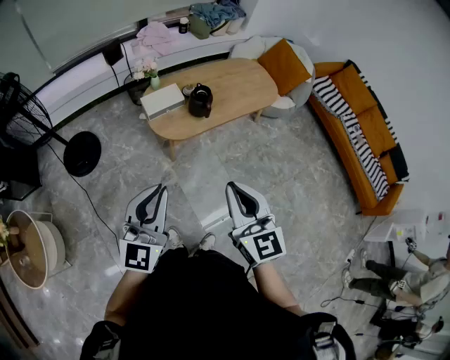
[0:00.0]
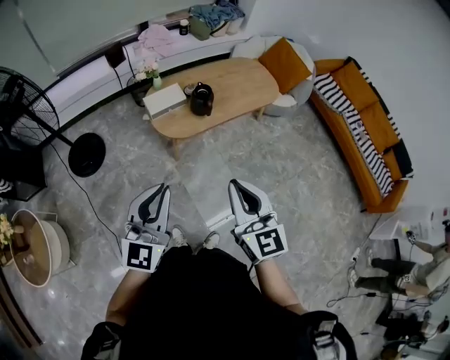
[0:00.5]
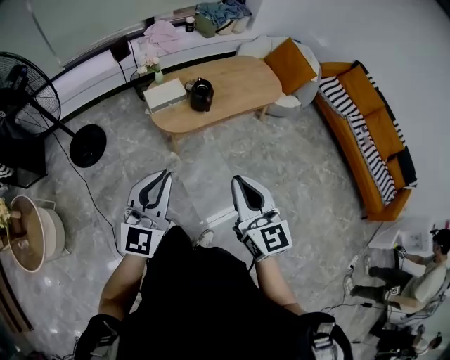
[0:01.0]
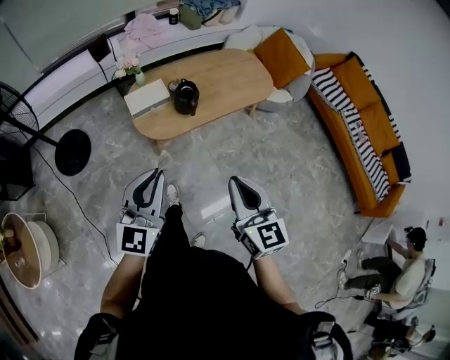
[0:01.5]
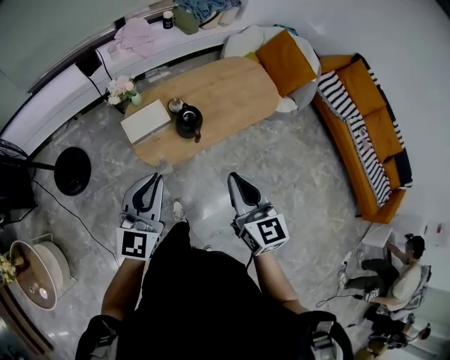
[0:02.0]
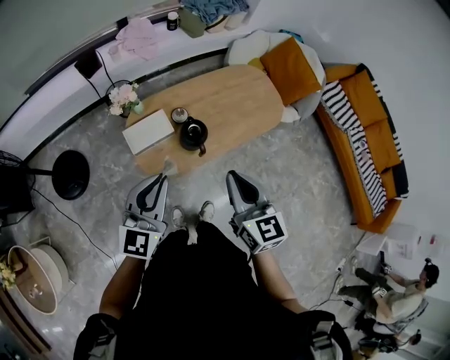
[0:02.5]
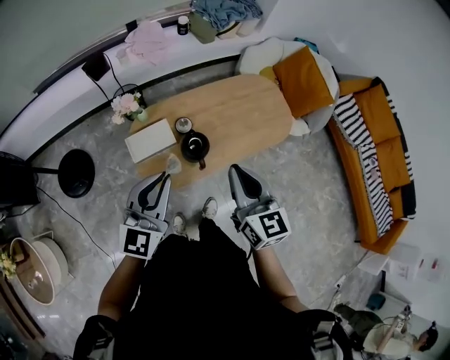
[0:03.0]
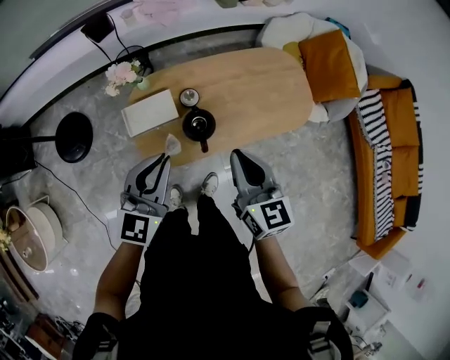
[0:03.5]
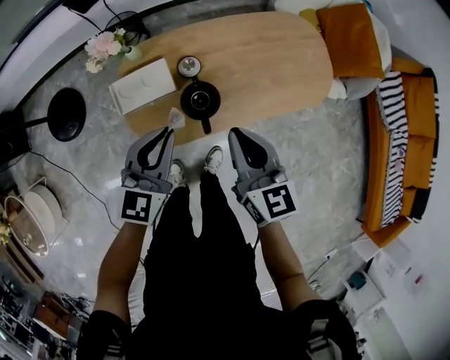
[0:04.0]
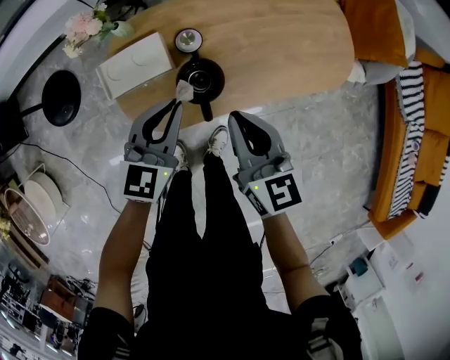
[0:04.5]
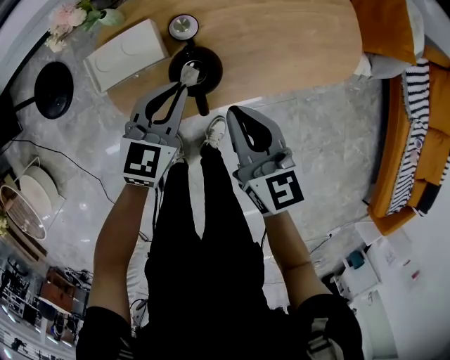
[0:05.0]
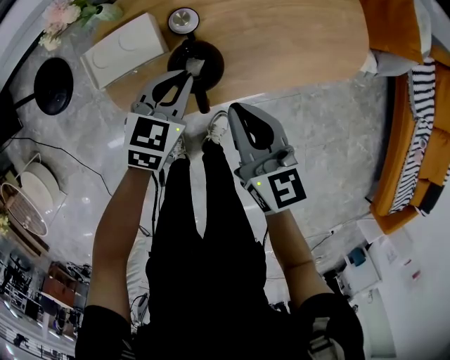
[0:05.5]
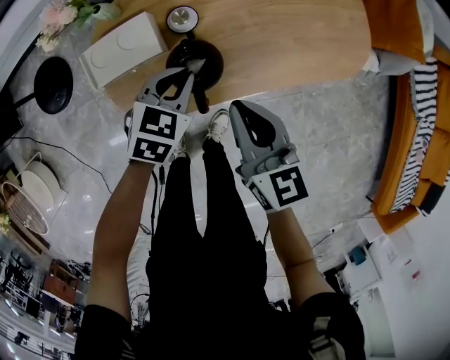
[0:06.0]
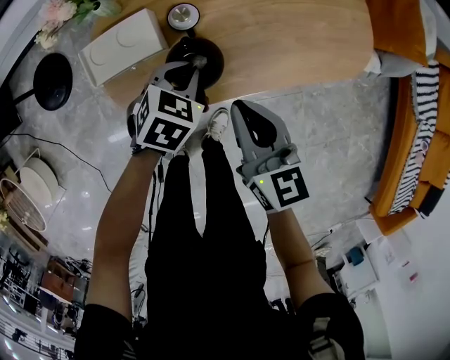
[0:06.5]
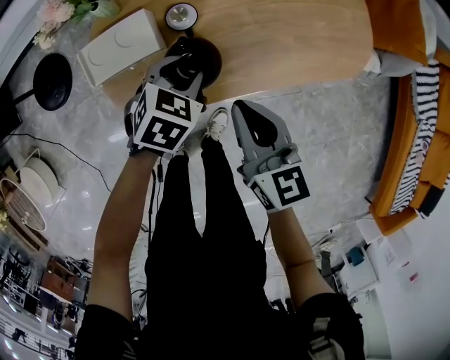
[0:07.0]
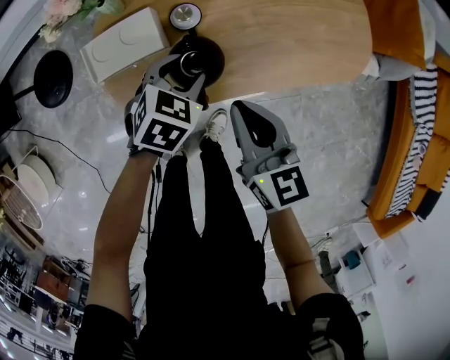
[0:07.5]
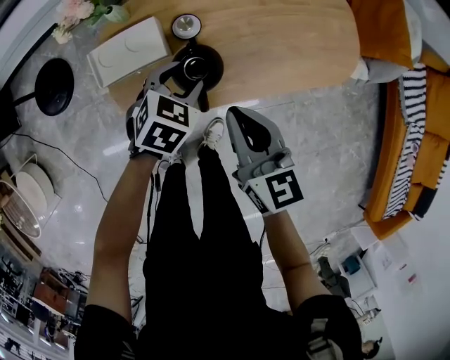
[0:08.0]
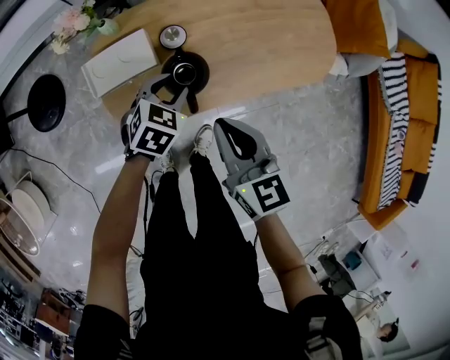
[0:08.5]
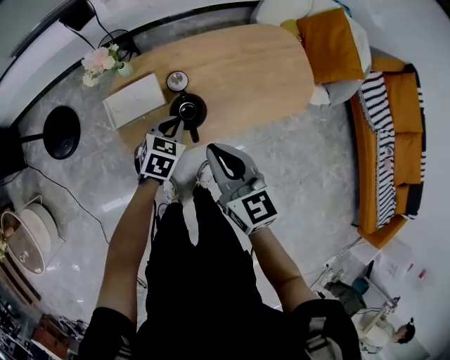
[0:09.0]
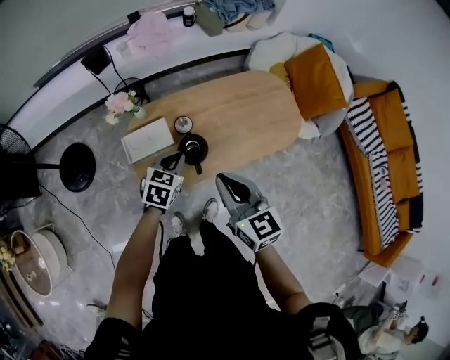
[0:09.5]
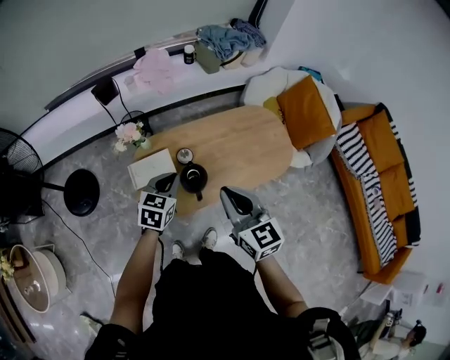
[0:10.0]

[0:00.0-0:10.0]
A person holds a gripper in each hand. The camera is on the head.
0:00.0 to 0:02.0: Both grippers move forward, about 25 cm.
0:02.0 to 0:04.0: Both grippers travel together forward and downward, roughly 30 cm.
0:04.0 to 0:06.0: The right gripper goes some 15 cm downward. The left gripper moves downward, approximately 20 cm, and points its fingers roughly 30 degrees further downward.
0:06.0 to 0:08.0: The left gripper opens up.
0:08.0 to 0:10.0: The grippers both shift upward by about 25 cm. The left gripper changes its angle by some 20 degrees, and closes up.

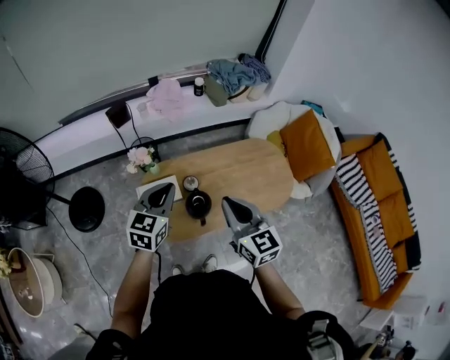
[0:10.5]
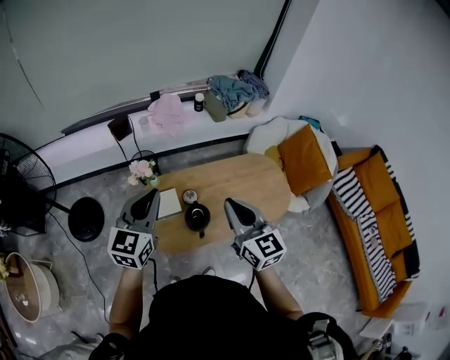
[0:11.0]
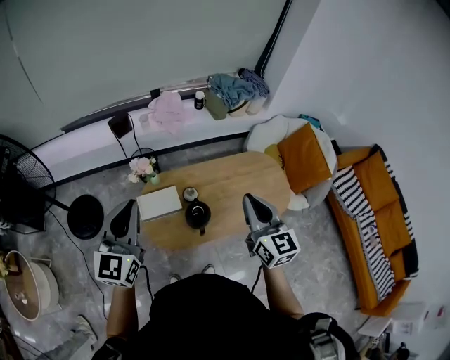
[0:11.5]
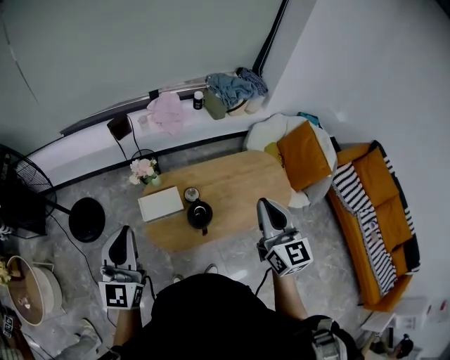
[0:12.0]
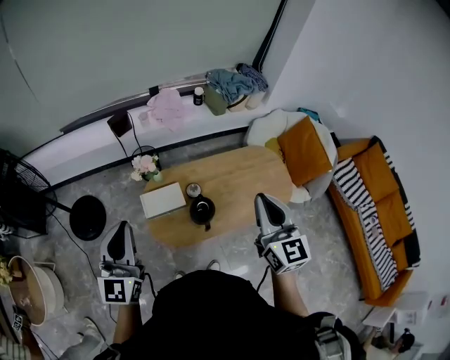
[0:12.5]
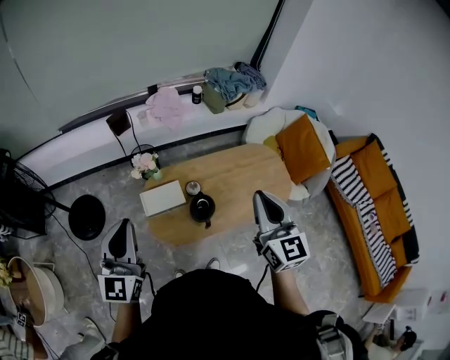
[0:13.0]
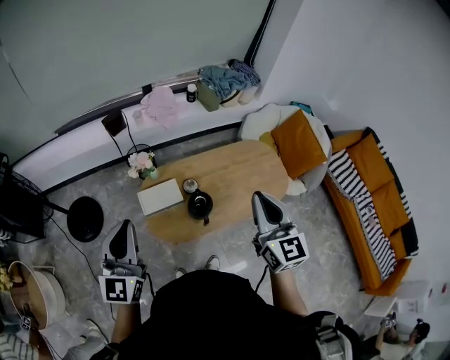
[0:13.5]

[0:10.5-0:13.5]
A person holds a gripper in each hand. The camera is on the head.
0:10.5 to 0:12.0: The right gripper travels upward and to the right by about 10 cm. Meanwhile the left gripper goes approximately 20 cm upward, to the left and backward, and turns by some 30 degrees.
0:12.0 to 0:13.5: There are only small adjustments of the grippers.

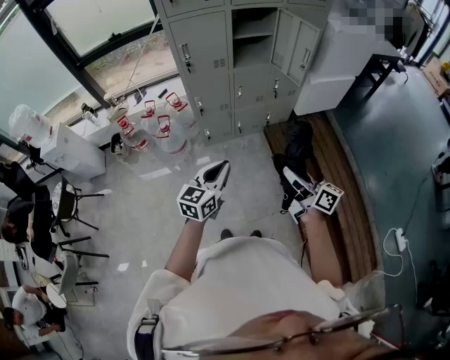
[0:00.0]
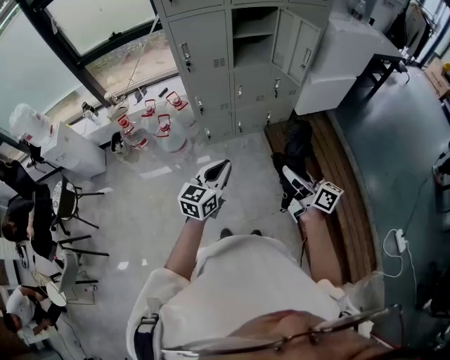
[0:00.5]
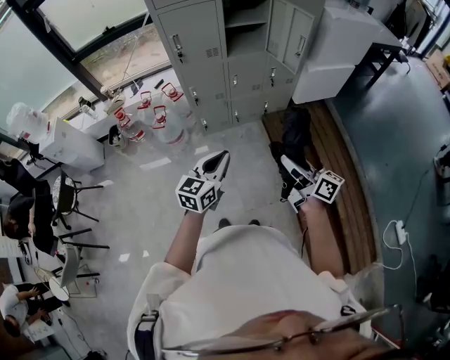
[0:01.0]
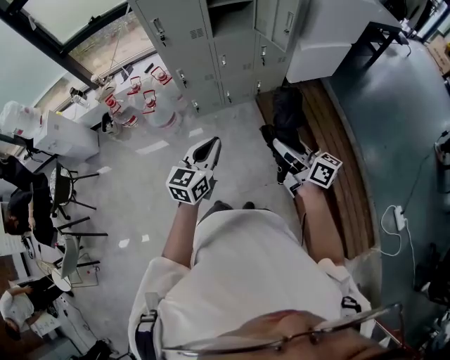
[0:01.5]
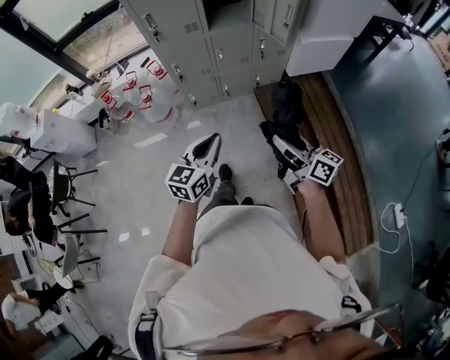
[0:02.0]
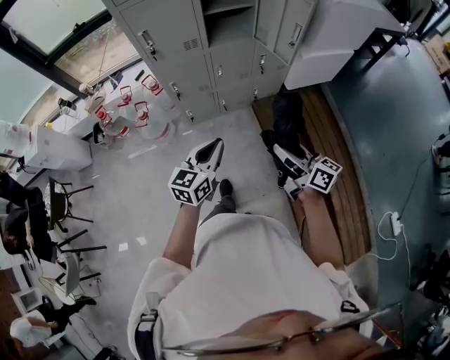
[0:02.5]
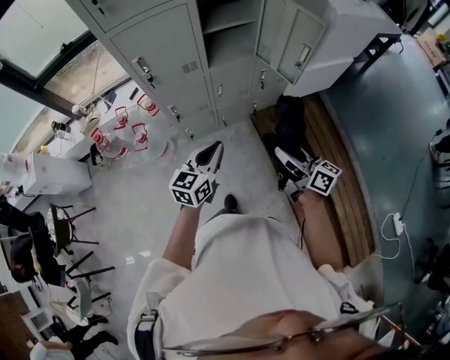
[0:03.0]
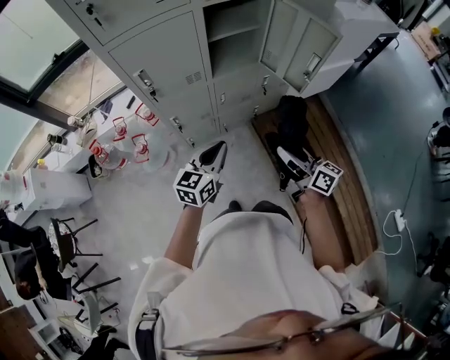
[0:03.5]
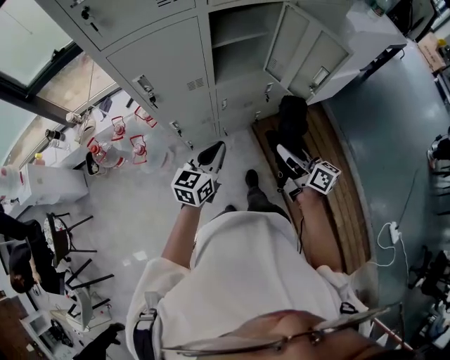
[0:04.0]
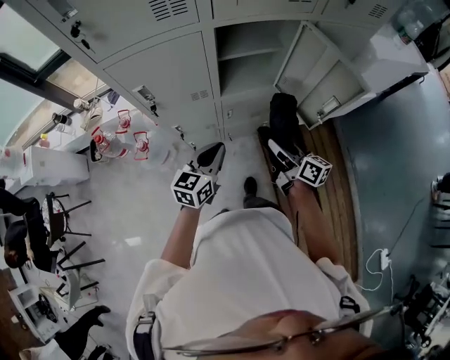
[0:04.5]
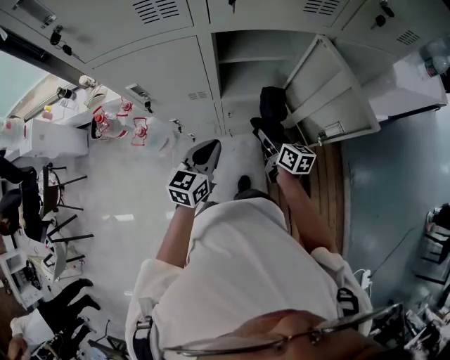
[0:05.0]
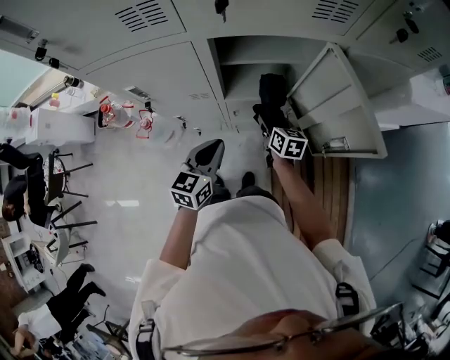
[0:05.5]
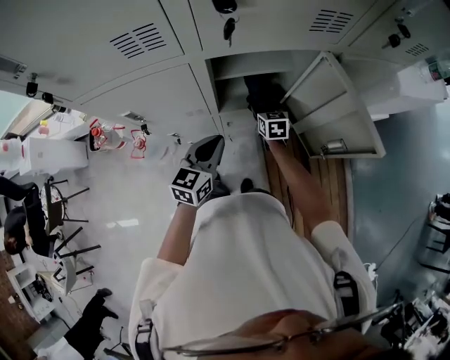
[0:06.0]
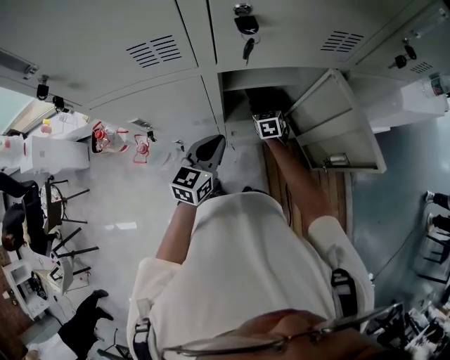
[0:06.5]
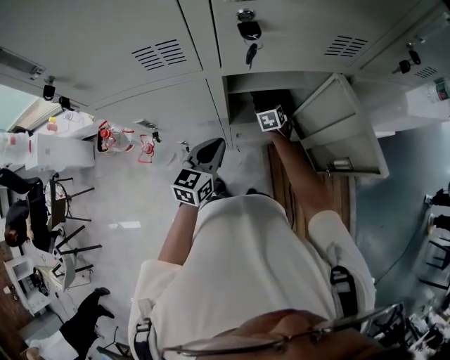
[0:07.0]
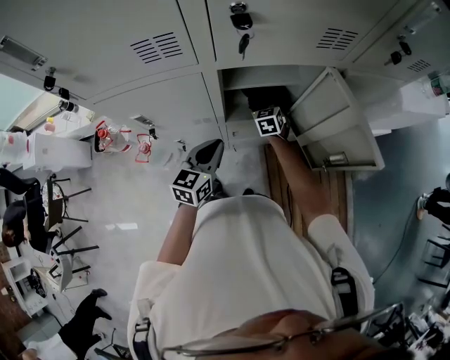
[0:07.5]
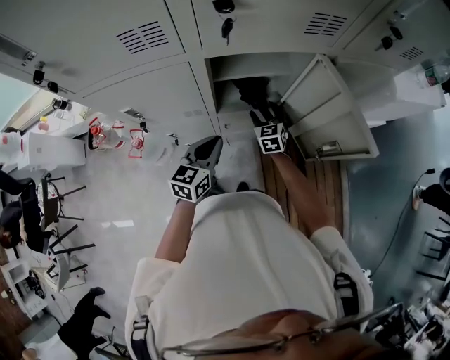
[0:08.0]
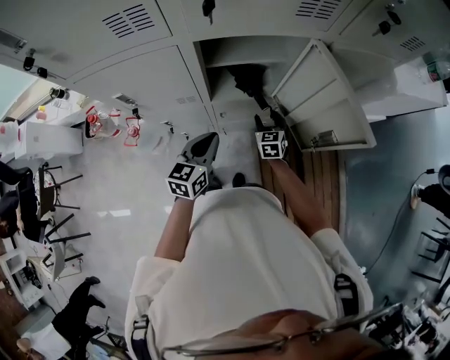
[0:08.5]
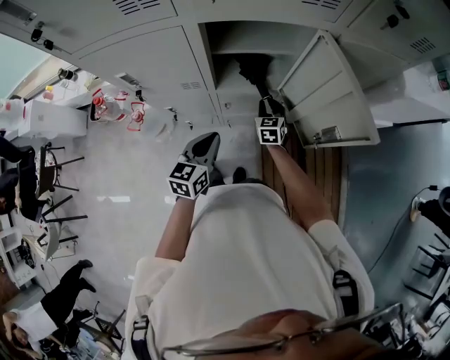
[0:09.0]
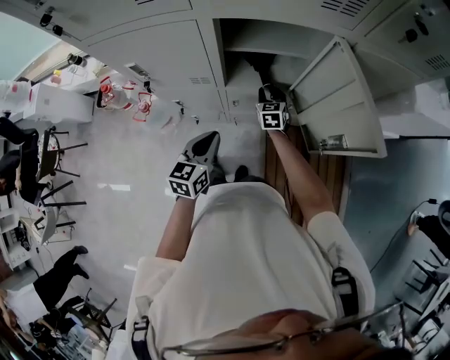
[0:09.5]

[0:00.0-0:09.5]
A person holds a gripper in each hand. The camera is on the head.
0:00.0 to 0:02.0: Both grippers move to the right, about 10 cm.
0:02.0 to 0:04.0: The grippers both shift forward by some 35 cm.
0:04.0 to 0:05.5: The right gripper is displaced forward and downward by approximately 35 cm, and rotates approximately 30 degrees. Meanwhile the left gripper heads forward and to the right, covering roughly 15 cm, and turns by some 20 degrees.
0:05.5 to 0:07.5: The right gripper shifts about 15 cm forward, and turns by approximately 40 degrees; the left gripper goes roughly 5 cm forward.
0:07.5 to 0:09.5: The two grippers go roughly 10 cm backward. The right gripper closes its fingers.

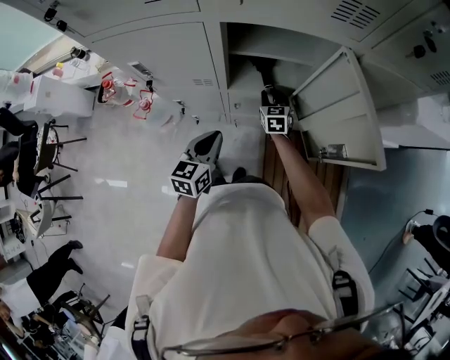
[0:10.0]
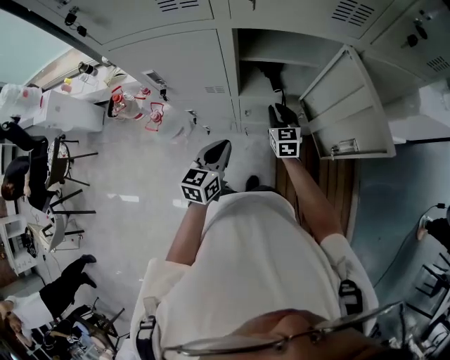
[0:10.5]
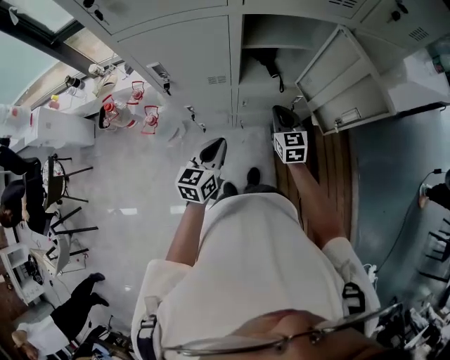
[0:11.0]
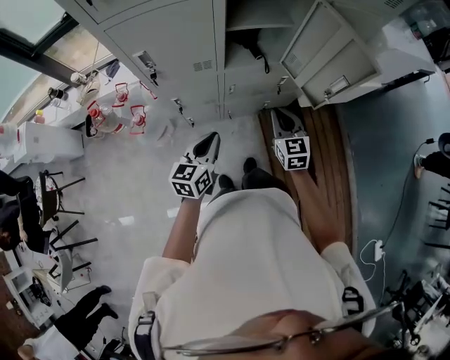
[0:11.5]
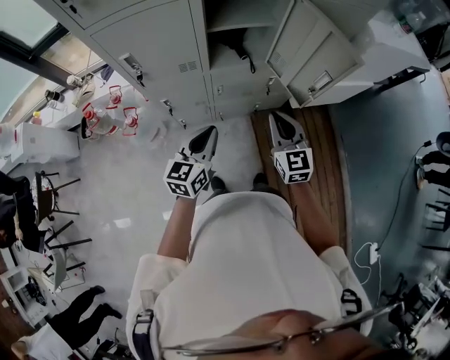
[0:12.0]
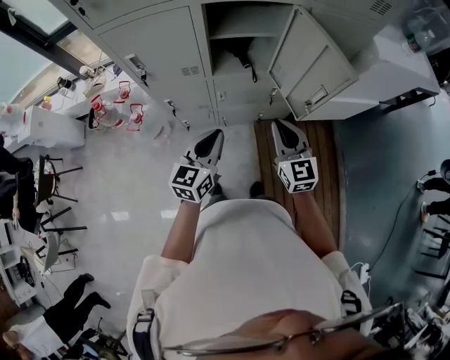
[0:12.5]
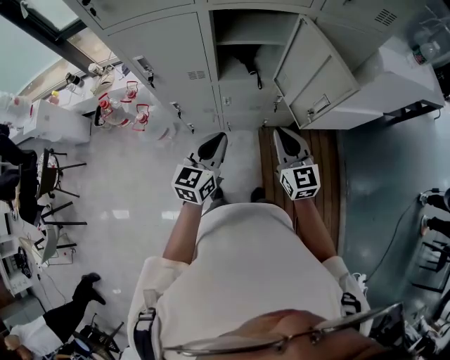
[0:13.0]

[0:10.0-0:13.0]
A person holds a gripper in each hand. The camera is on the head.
0:10.0 to 0:11.5: The left gripper travels backward and to the left by roughly 15 cm; the right gripper shifts approximately 30 cm backward and upward.
0:11.5 to 0:13.0: The left gripper heads to the right and upward, covering some 15 cm. The right gripper travels upward and to the right by roughly 10 cm.

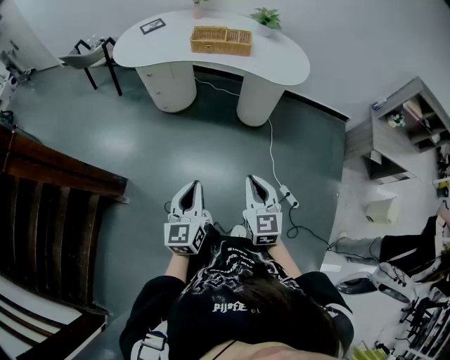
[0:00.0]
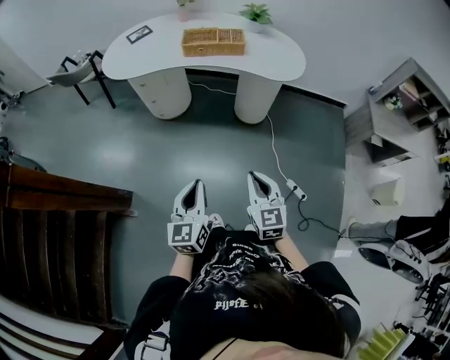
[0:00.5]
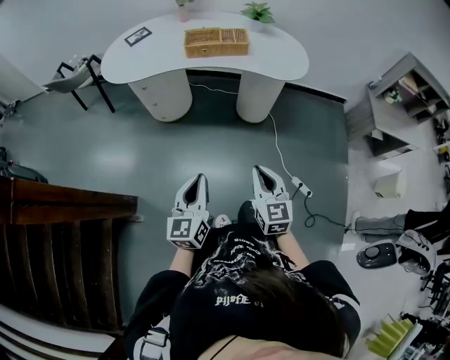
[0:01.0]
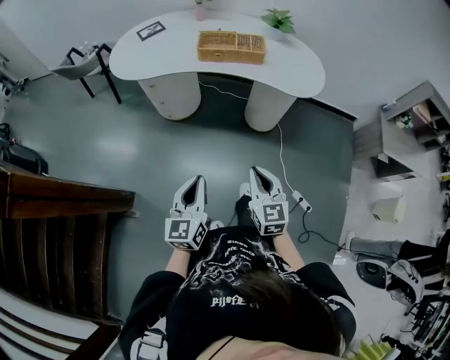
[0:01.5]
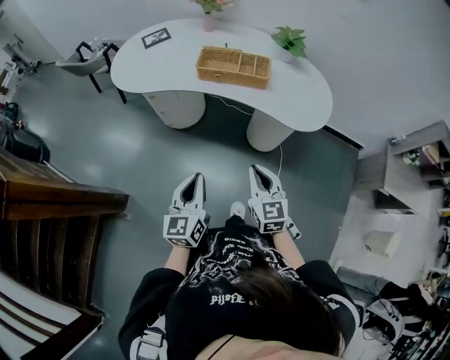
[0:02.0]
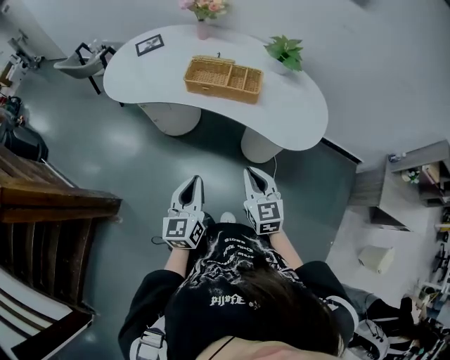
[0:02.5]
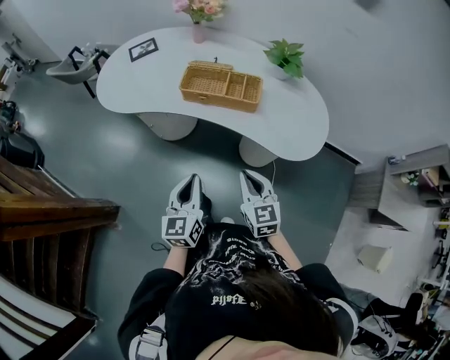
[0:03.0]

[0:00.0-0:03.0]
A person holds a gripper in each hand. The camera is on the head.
0:00.0 to 0:01.5: Both grippers move forward and to the left, about 15 cm.
0:01.5 to 0:03.0: The two grippers go some 30 cm forward and to the right.
